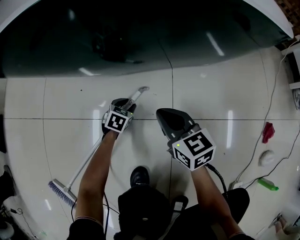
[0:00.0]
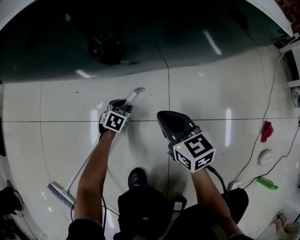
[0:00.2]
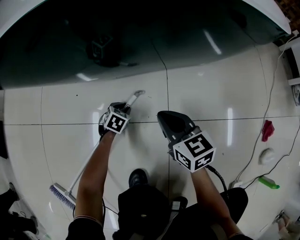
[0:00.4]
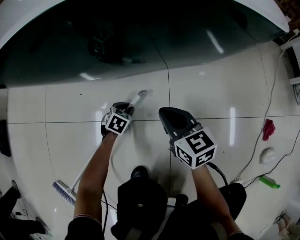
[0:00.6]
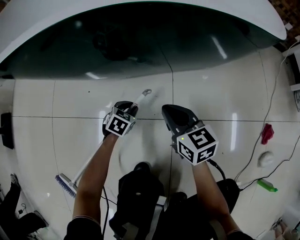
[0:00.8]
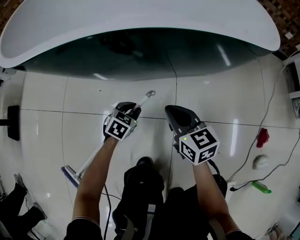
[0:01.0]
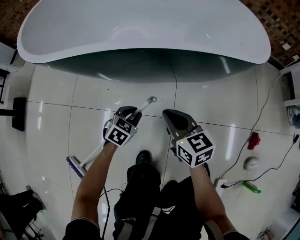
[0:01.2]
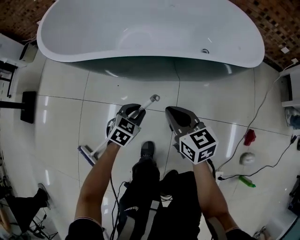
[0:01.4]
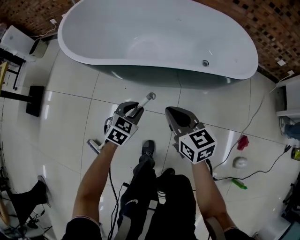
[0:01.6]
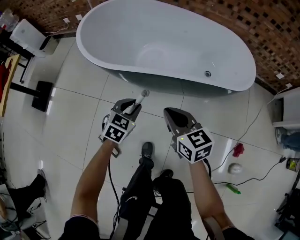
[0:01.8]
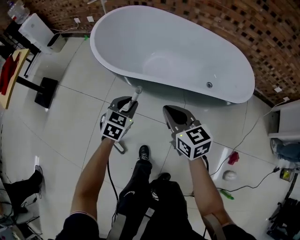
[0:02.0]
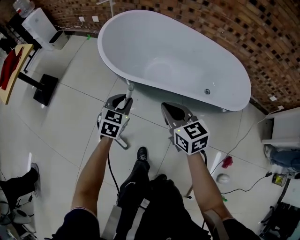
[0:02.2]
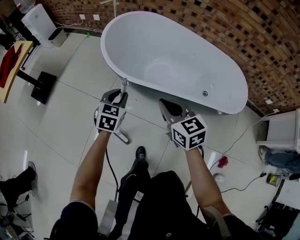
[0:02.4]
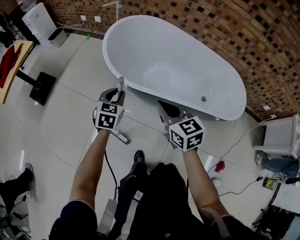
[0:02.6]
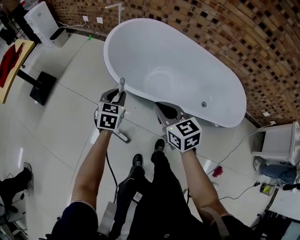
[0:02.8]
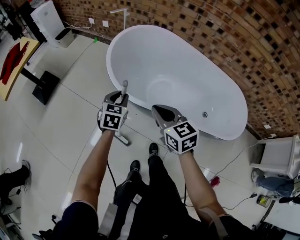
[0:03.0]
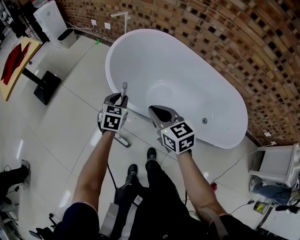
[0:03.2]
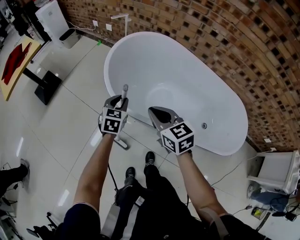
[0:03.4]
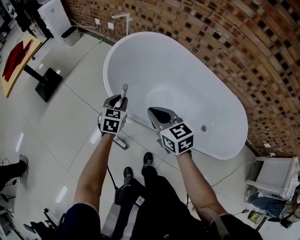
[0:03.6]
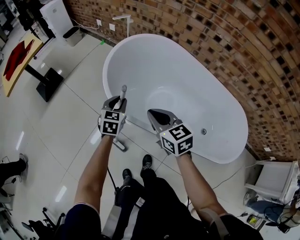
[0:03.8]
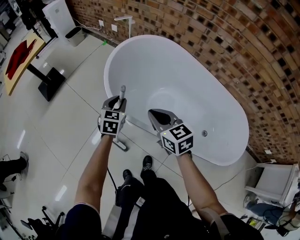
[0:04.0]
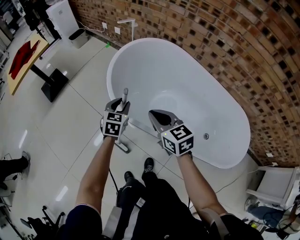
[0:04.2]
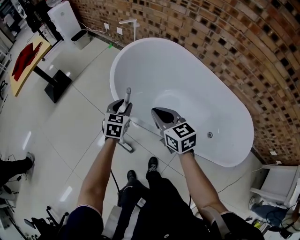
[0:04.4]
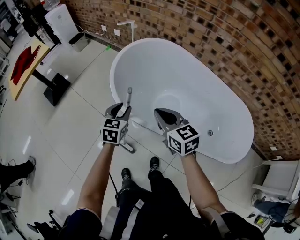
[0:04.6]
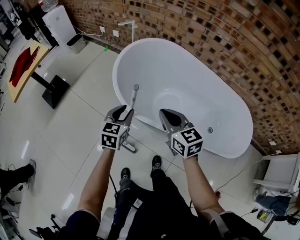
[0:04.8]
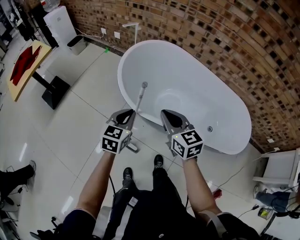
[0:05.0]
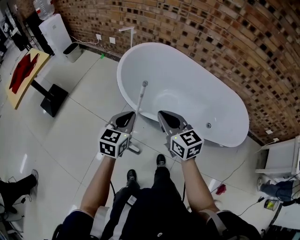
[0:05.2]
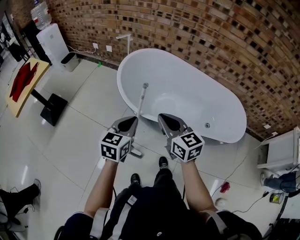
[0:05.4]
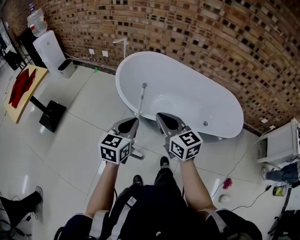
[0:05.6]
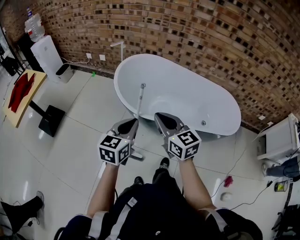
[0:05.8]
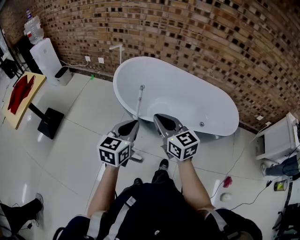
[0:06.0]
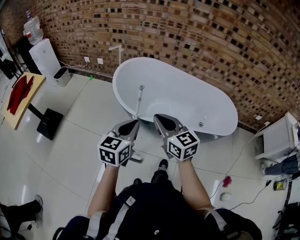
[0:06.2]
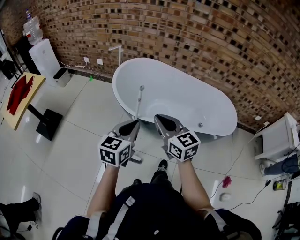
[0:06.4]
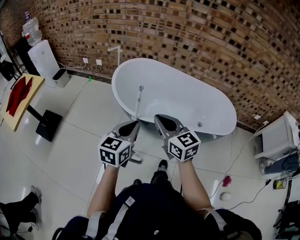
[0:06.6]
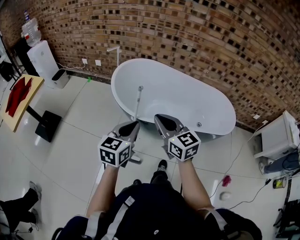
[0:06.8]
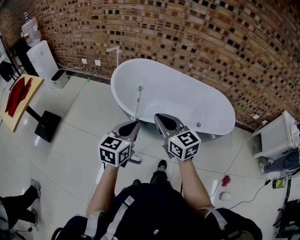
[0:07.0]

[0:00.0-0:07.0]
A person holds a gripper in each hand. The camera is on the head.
0:00.0 to 0:01.4: Both grippers move upward, about 35 cm.
0:01.4 to 0:02.8: Both grippers move upward, some 30 cm. The right gripper swivels roughly 20 degrees. The left gripper changes its angle by approximately 40 degrees.
0:02.8 to 0:04.2: The grippers both shift forward and to the right by about 10 cm.
0:04.2 to 0:05.6: The right gripper ends up some 20 cm from where it was, and turns by about 20 degrees. Meanwhile the left gripper shifts by approximately 25 cm, swivels roughly 30 degrees, and closes.
0:05.6 to 0:07.0: The grippers make only small movements.

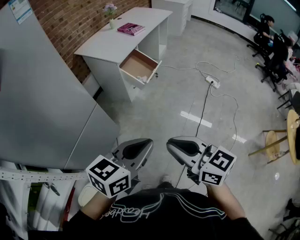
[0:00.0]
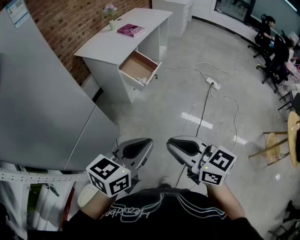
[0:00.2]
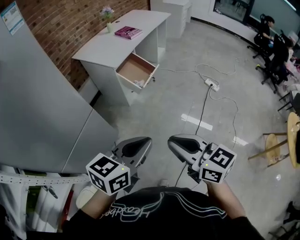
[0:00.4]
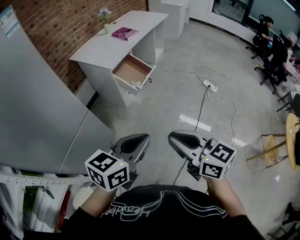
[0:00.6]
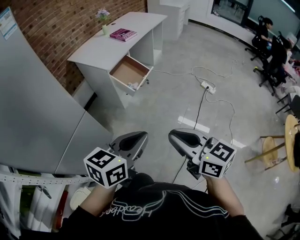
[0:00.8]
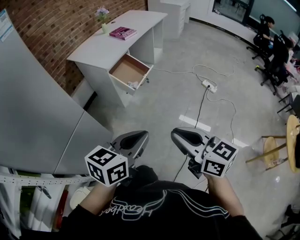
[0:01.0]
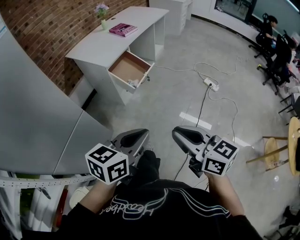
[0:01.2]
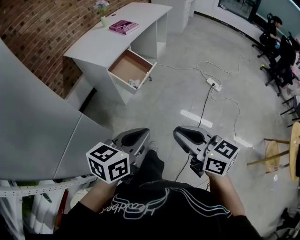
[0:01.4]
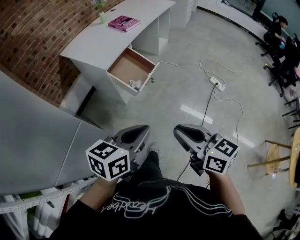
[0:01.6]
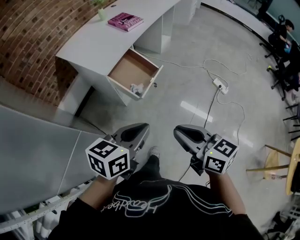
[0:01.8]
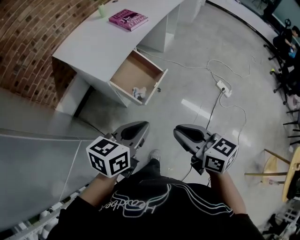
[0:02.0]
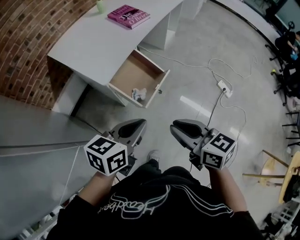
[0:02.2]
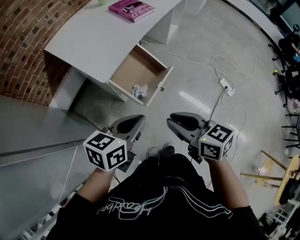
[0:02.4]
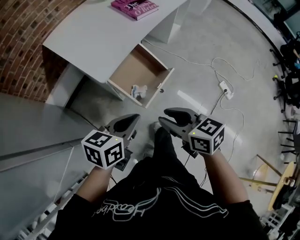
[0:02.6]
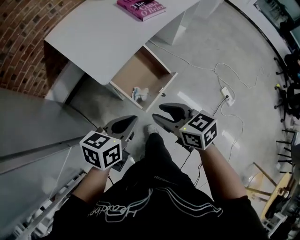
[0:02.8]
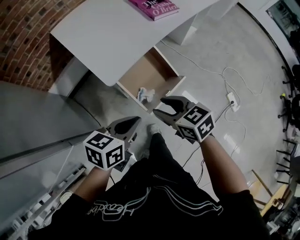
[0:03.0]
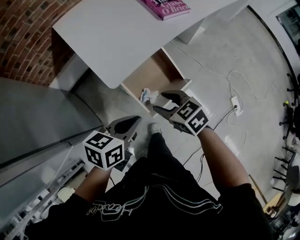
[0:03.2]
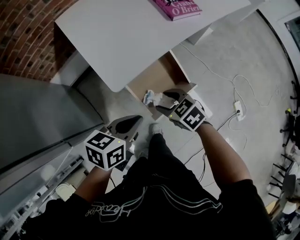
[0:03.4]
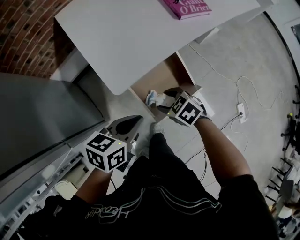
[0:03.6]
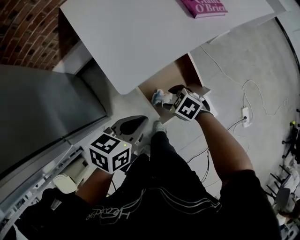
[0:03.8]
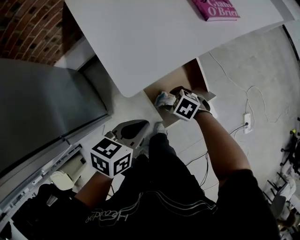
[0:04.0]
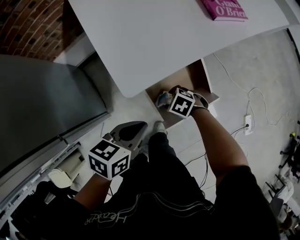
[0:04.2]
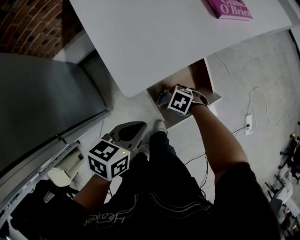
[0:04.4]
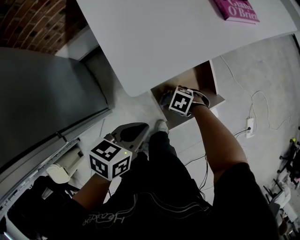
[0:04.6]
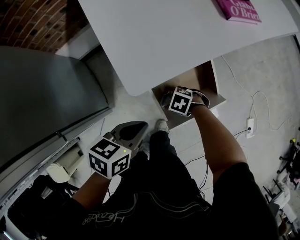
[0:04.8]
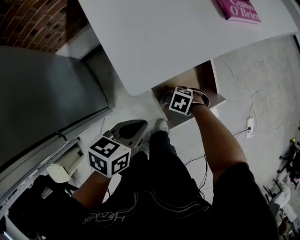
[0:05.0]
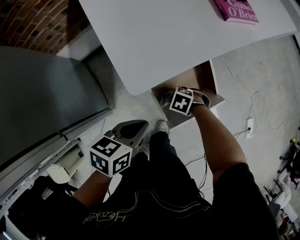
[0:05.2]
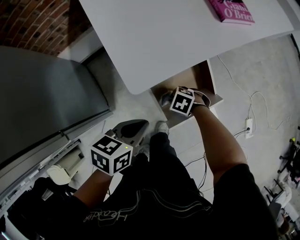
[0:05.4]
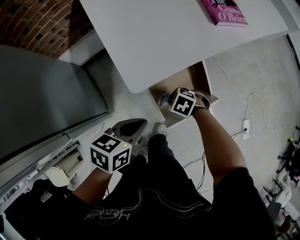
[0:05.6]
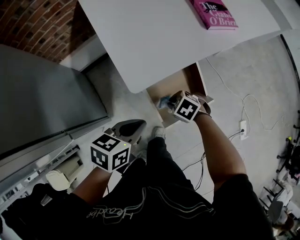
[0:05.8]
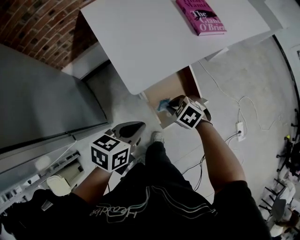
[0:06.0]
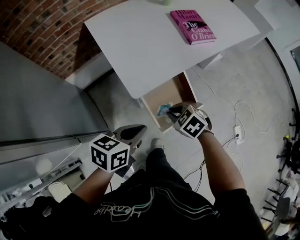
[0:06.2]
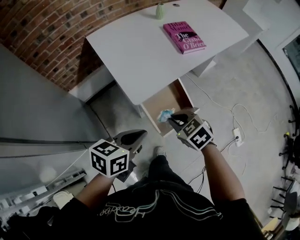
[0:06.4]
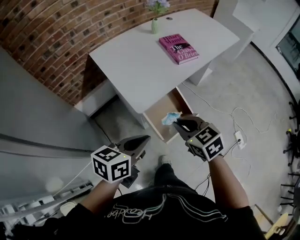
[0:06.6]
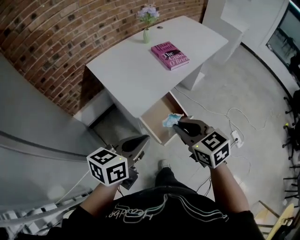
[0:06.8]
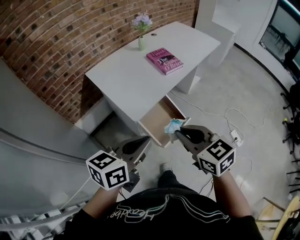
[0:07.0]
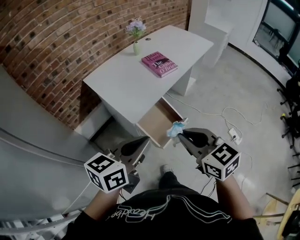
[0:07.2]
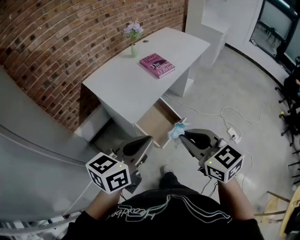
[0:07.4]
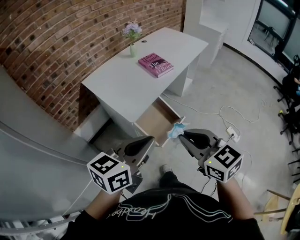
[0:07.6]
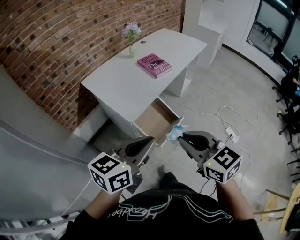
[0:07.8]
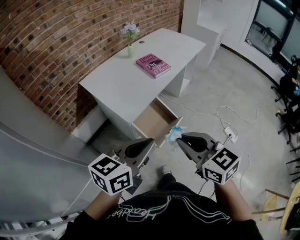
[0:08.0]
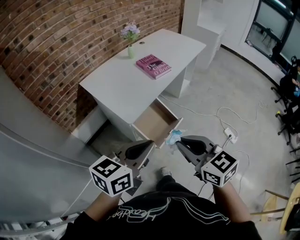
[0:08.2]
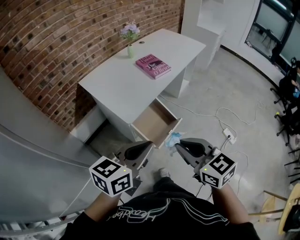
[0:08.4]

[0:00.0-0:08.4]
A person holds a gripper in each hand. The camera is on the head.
0:00.0 to 0:01.4: The right gripper travels forward and to the right by some 20 cm, while the left gripper is displaced forward, to the right and downward by about 20 cm.
0:01.4 to 0:02.8: Both grippers are carried forward, roughly 50 cm. The right gripper changes its angle by about 30 degrees, and opens.
0:02.8 to 0:04.2: The right gripper heads downward, covering roughly 30 cm, and points its fingers roughly 40 degrees further downward. Meanwhile the left gripper shifts by some 20 cm.
0:04.2 to 0:05.6: The right gripper goes downward and returns, some 5 cm each way, and closes.
0:05.6 to 0:07.0: The two grippers go about 40 cm upward. The right gripper tips its fingers upward by some 50 degrees. Meanwhile the left gripper rotates about 30 degrees.
0:07.0 to 0:08.4: The right gripper goes approximately 10 cm backward. The left gripper shifts some 5 cm backward.

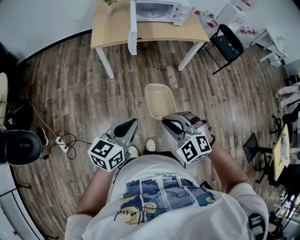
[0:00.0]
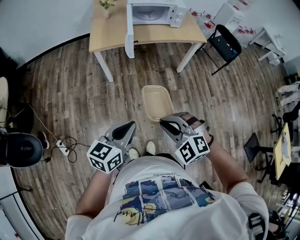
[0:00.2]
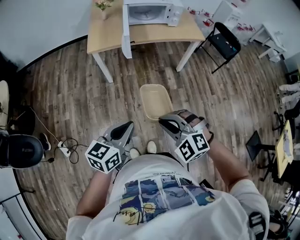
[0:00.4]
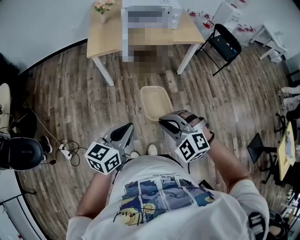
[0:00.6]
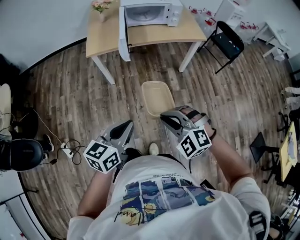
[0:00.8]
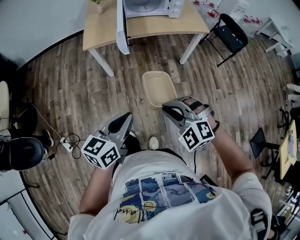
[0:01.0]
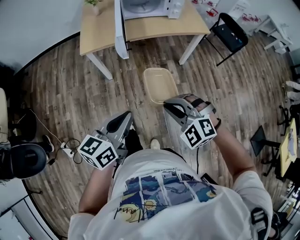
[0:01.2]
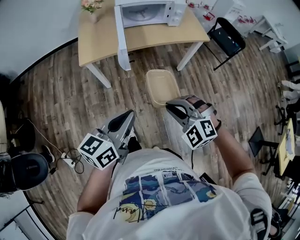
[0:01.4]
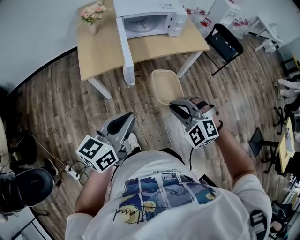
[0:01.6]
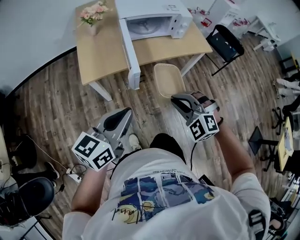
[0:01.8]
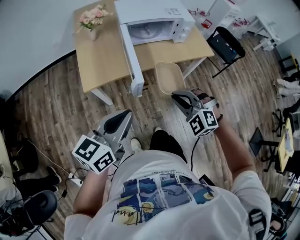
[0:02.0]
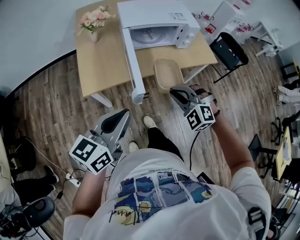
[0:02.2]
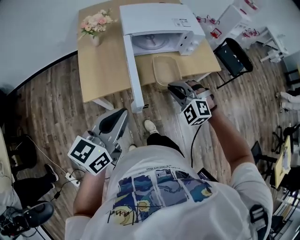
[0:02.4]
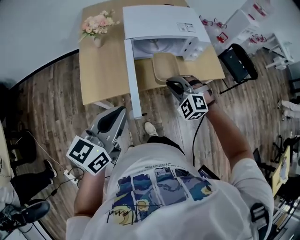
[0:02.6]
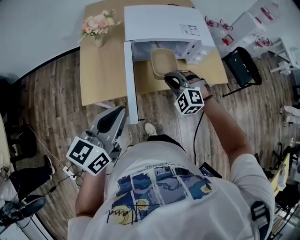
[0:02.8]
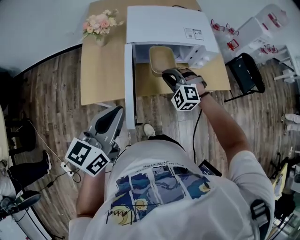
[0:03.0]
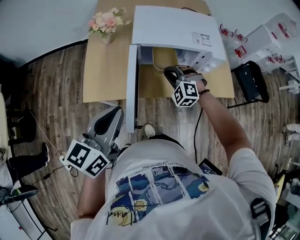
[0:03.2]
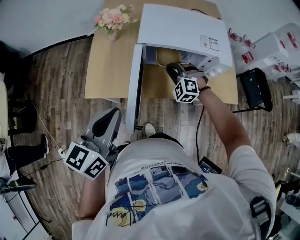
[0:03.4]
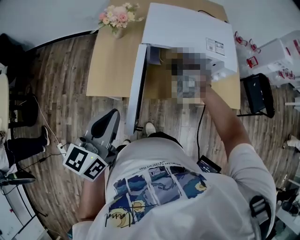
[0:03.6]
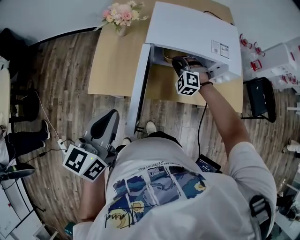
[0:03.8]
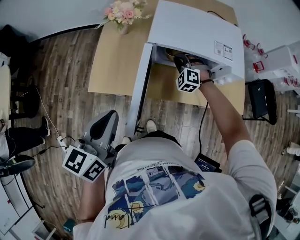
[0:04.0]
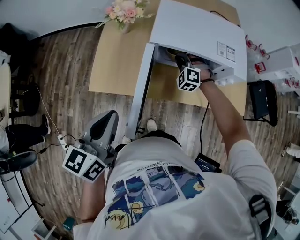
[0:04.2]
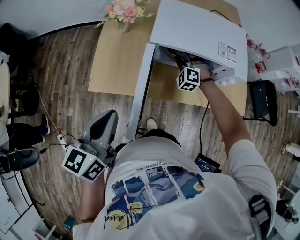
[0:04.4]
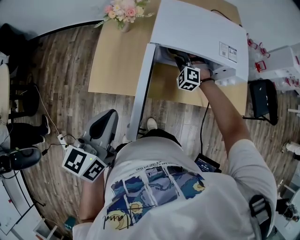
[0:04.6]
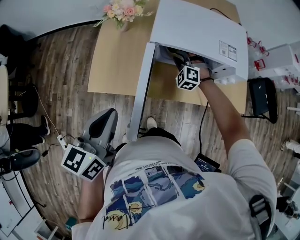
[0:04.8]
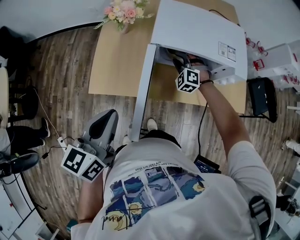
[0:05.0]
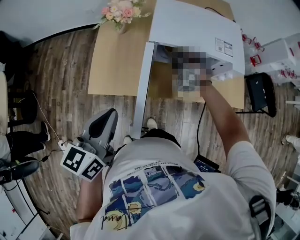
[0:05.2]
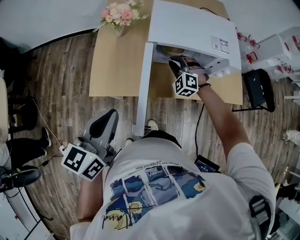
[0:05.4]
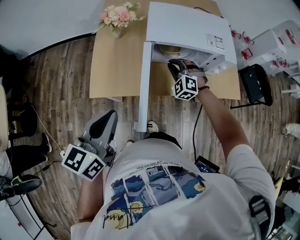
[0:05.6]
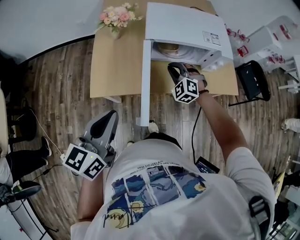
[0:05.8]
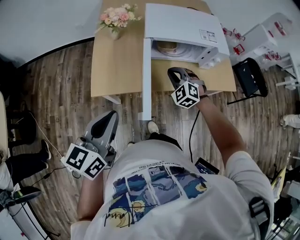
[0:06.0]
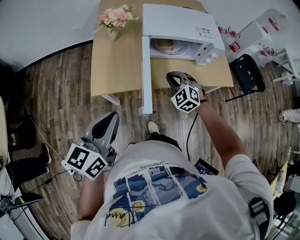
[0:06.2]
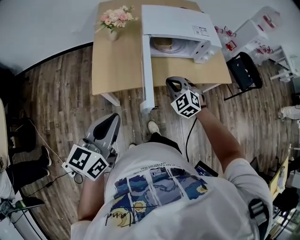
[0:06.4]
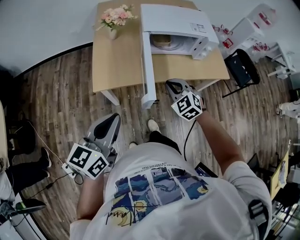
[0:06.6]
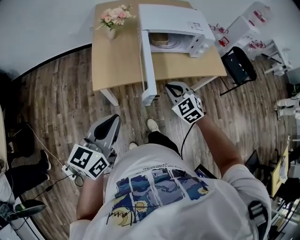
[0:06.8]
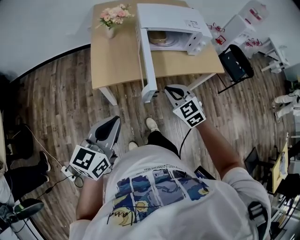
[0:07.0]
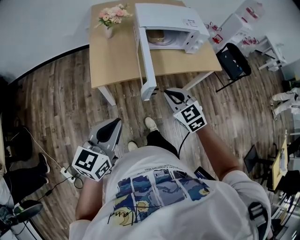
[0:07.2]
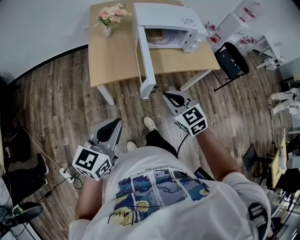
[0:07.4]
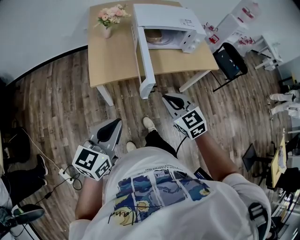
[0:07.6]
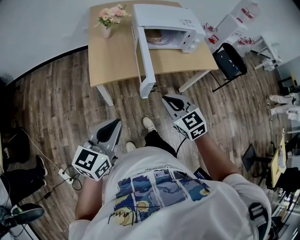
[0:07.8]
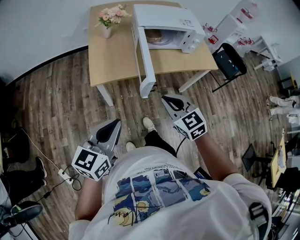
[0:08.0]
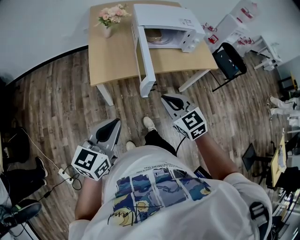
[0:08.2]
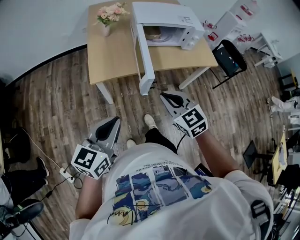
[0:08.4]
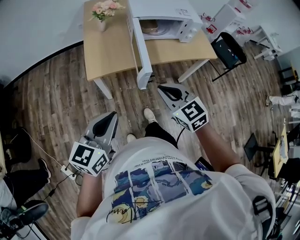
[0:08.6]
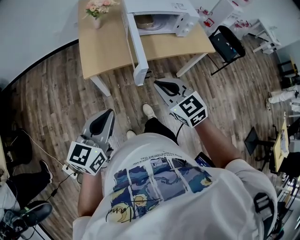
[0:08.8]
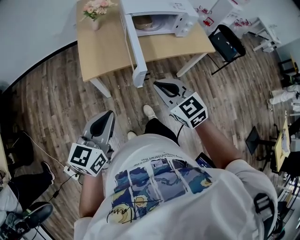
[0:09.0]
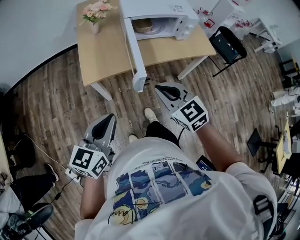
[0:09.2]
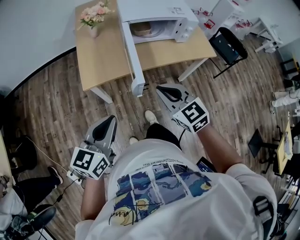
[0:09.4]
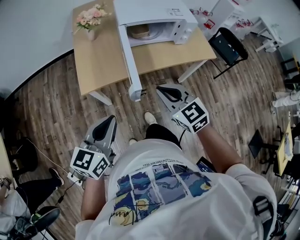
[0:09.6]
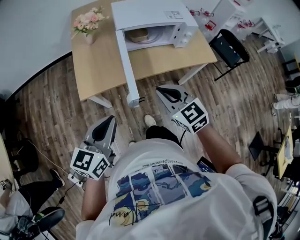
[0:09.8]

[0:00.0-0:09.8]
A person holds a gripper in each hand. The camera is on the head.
0:00.0 to 0:01.4: Both grippers move forward, approximately 15 cm.
0:01.4 to 0:02.8: Both grippers travel together forward, approximately 40 cm.
0:02.8 to 0:04.2: The right gripper heads forward and downward, covering roughly 25 cm. Meanwhile the left gripper ends up roughly 5 cm from where it was, and rotates approximately 20 degrees.
0:04.2 to 0:05.6: The right gripper shifts some 10 cm backward.
0:05.6 to 0:07.0: The right gripper is displaced backward by about 30 cm, and turns by about 40 degrees, while the left gripper moves backward, some 15 cm.
0:07.0 to 0:08.4: The right gripper goes about 10 cm backward.
0:08.4 to 0:09.8: The two grippers go about 10 cm forward and to the right.
